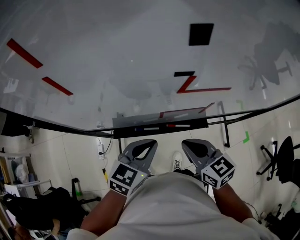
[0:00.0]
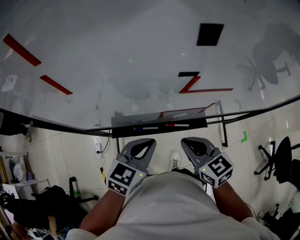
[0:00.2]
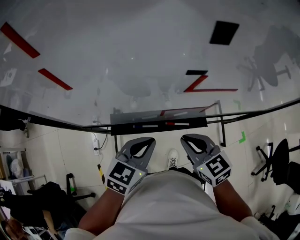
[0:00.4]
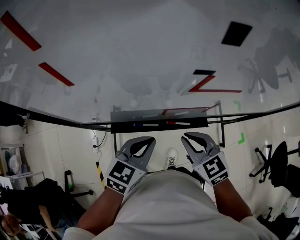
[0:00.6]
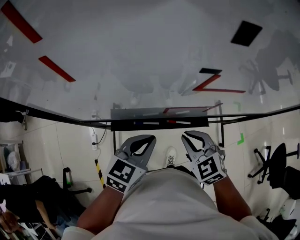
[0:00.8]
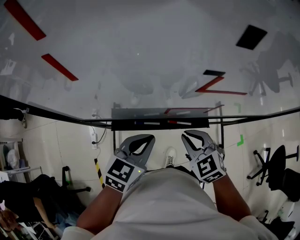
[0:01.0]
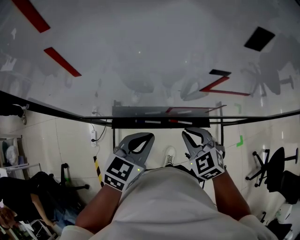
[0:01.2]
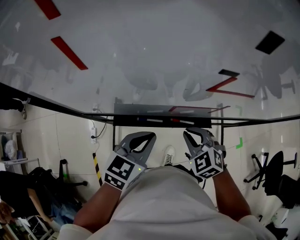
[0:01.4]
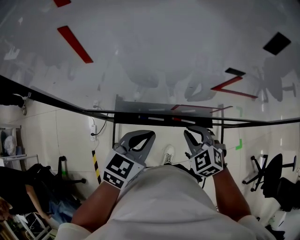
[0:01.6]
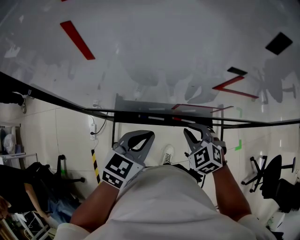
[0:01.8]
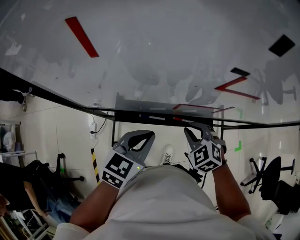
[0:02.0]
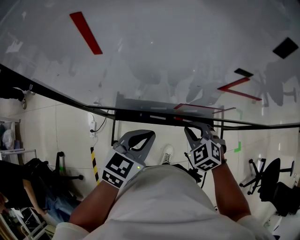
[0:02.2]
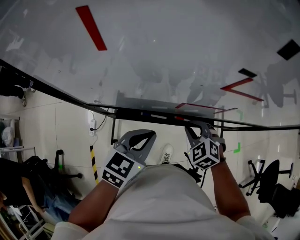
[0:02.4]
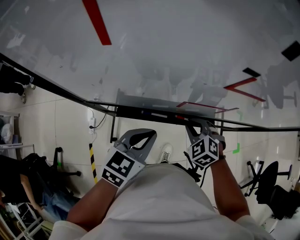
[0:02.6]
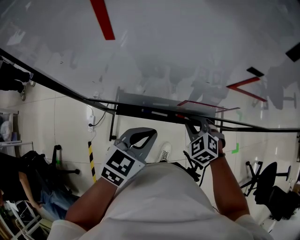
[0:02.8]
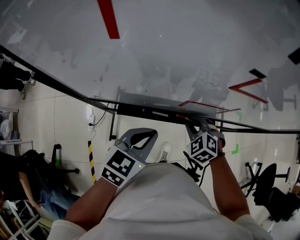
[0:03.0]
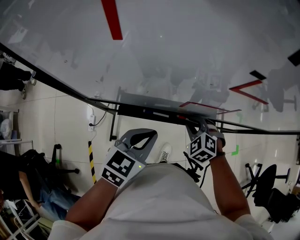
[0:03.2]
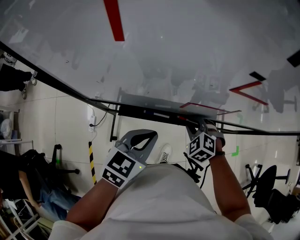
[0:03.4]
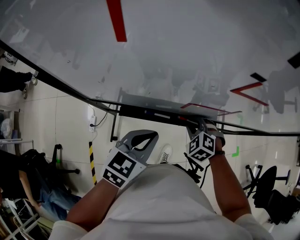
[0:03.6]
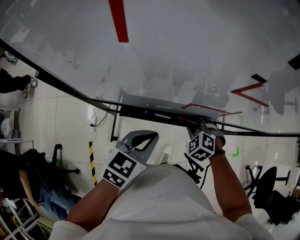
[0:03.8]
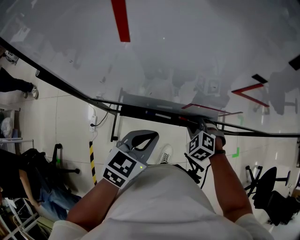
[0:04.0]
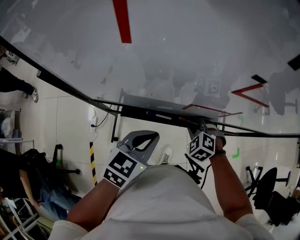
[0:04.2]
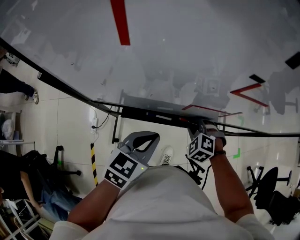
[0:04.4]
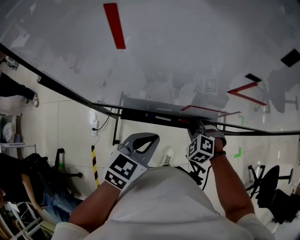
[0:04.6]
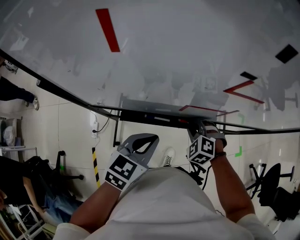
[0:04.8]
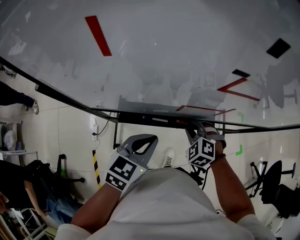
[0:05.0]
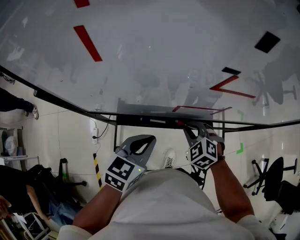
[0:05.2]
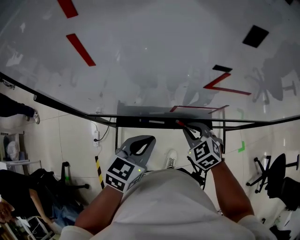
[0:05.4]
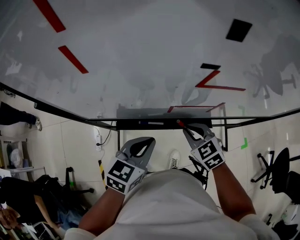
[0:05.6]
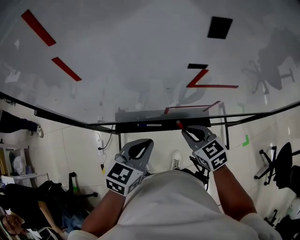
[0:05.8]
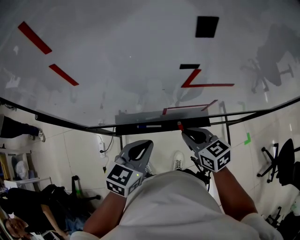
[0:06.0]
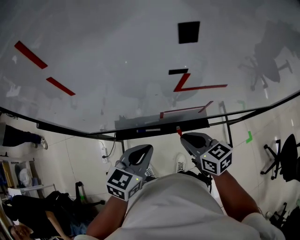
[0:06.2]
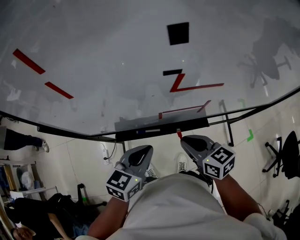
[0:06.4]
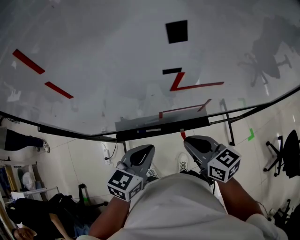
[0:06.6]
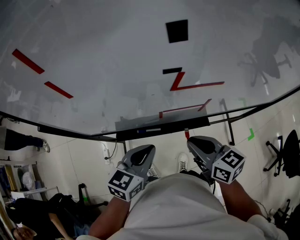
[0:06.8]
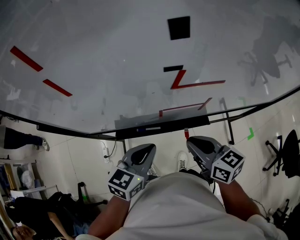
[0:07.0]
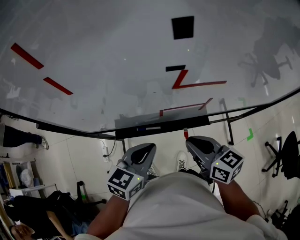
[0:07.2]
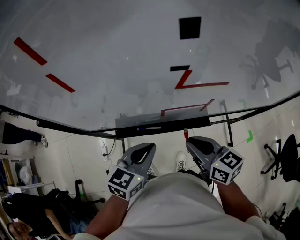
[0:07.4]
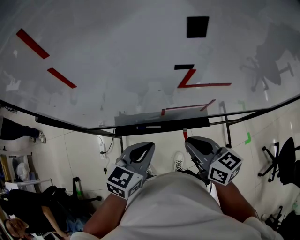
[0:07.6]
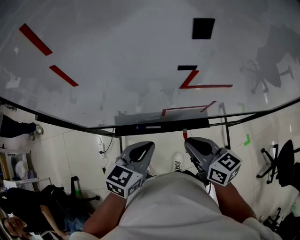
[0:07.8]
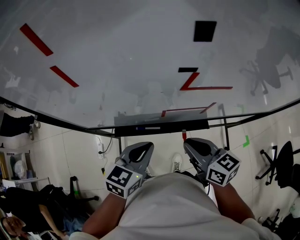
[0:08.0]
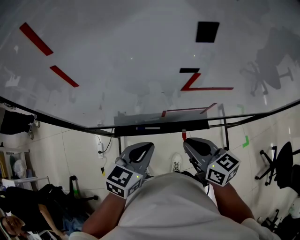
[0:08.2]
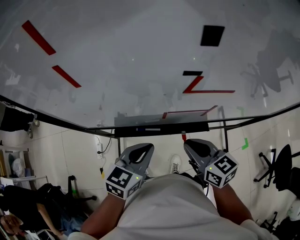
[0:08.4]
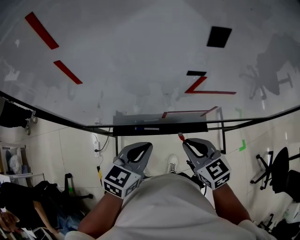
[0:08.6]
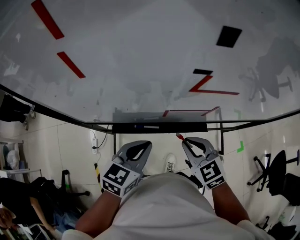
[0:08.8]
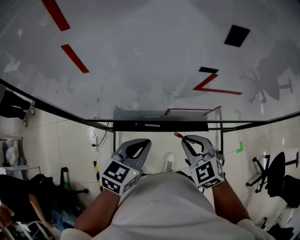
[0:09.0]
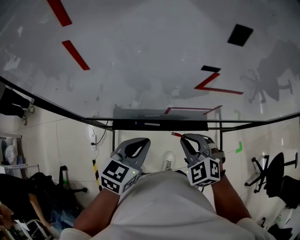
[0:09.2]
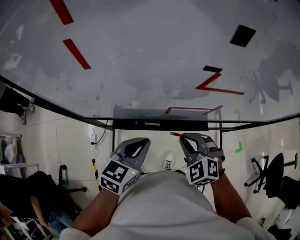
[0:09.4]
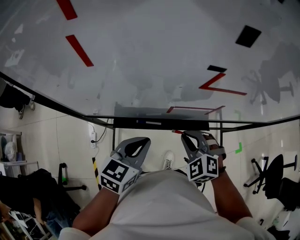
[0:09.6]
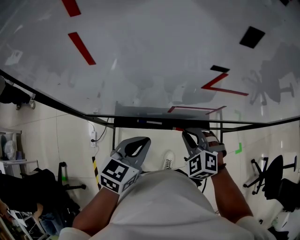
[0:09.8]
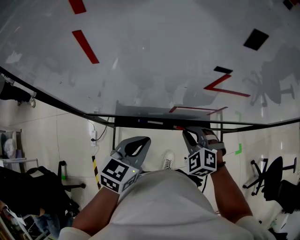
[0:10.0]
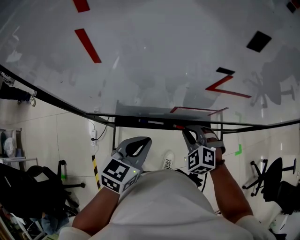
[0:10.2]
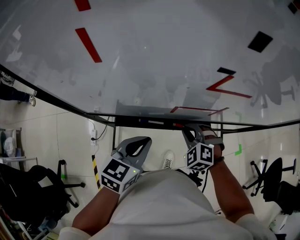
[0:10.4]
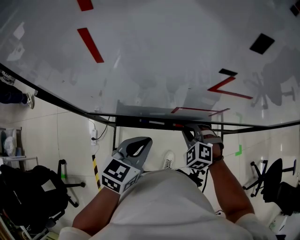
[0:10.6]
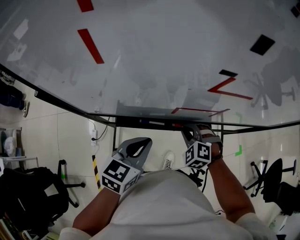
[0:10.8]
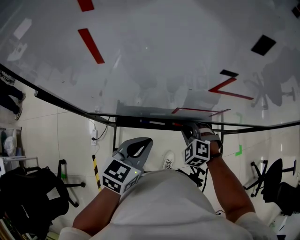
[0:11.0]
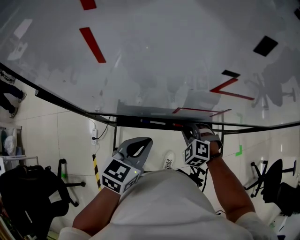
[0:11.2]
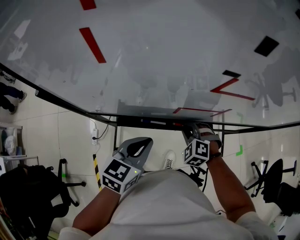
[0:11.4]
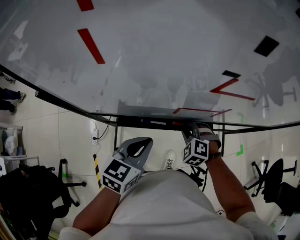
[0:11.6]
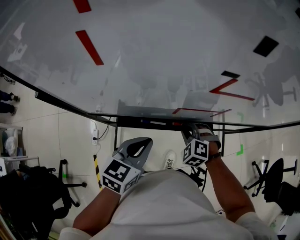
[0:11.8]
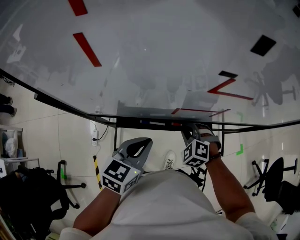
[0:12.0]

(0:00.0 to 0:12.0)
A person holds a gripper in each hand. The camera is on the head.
0:00.0 - 0:01.6: The right gripper is displaced downward by roughly 10 cm, and twists some 40 degrees counterclockwise, seen from behind.
0:01.6 - 0:03.0: The right gripper is displaced downward by roughly 5 cm.
0:03.0 - 0:04.4: The grippers move only a little.
0:04.4 - 0:06.0: The right gripper goes roughly 10 cm upward, and rolls clockwise, seen from behind, by some 60 degrees.
0:06.0 - 0:07.6: The right gripper goes approximately 5 cm upward.
0:07.6 - 0:09.0: The right gripper rotates around the line of its fingers by approximately 50 degrees, counterclockwise from behind.
0:09.0 - 0:10.4: The right gripper moves downward, about 5 cm, and swivels some 30 degrees.
0:10.4 - 0:12.0: The grippers move only a little.

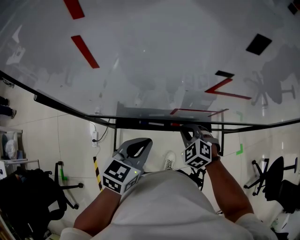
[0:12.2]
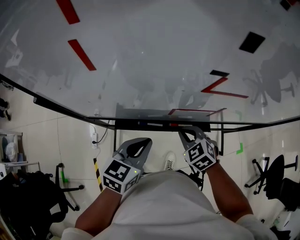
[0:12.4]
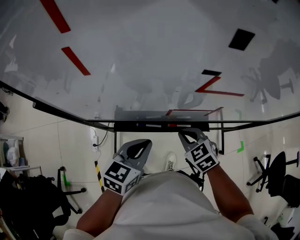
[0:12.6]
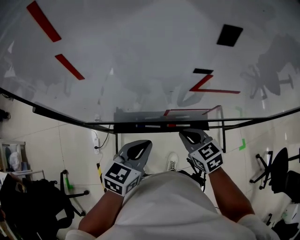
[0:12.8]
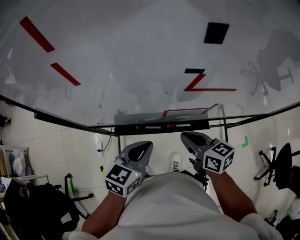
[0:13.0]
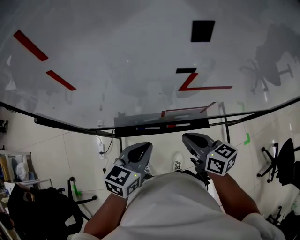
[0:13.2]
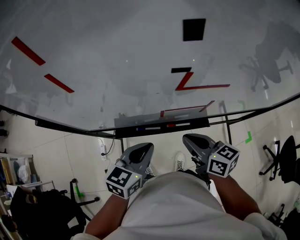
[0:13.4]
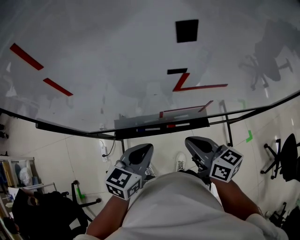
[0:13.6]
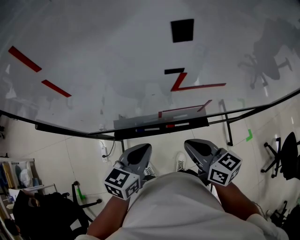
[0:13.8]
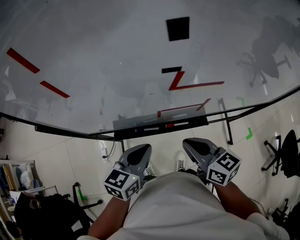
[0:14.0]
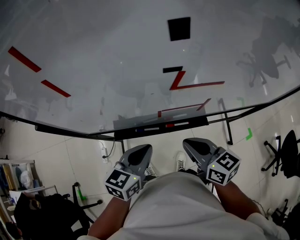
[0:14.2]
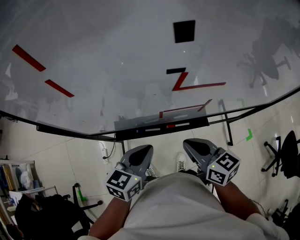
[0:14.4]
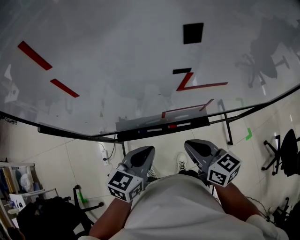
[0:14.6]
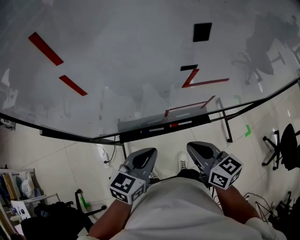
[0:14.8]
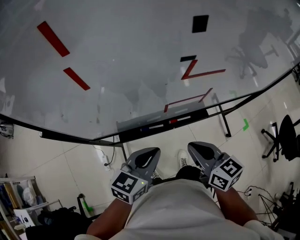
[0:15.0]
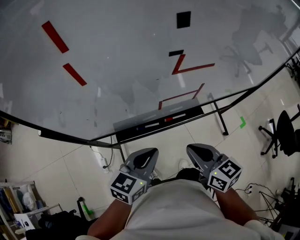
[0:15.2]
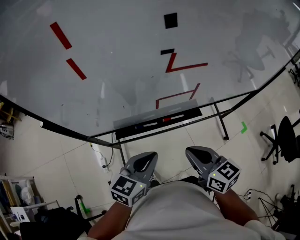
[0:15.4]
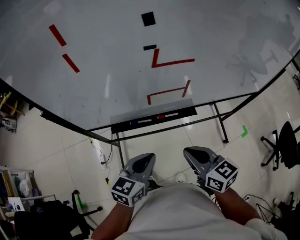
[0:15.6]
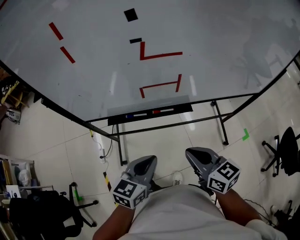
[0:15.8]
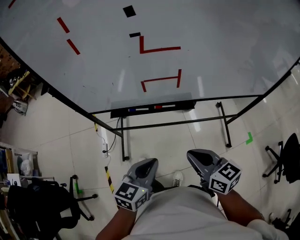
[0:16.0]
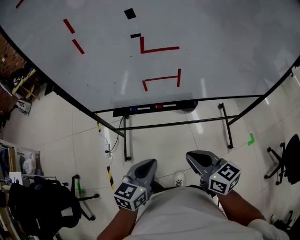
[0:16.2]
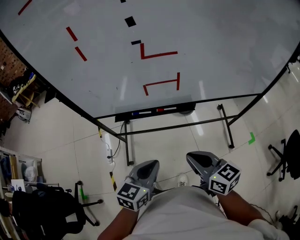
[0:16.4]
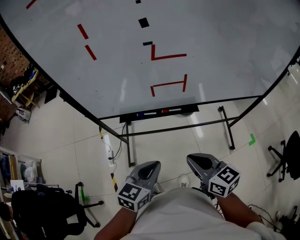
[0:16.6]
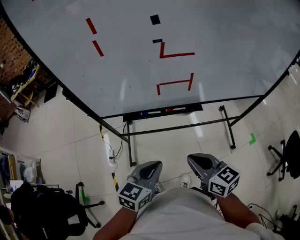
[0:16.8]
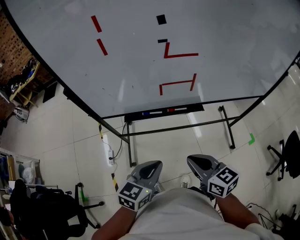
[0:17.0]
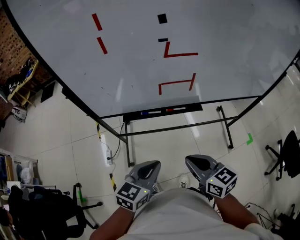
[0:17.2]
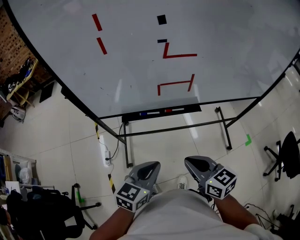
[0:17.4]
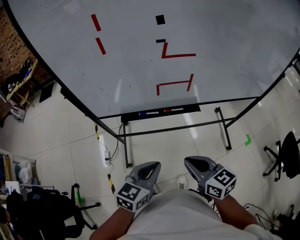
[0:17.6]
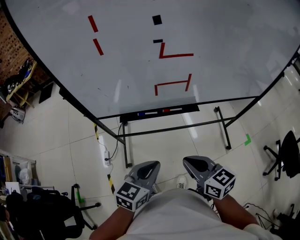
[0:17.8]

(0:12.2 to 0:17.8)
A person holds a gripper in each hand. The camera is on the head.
0:12.2 - 0:13.6: The right gripper heads upward, covering about 15 cm, and rotates around the line of its fingers by some 60 degrees, clockwise from behind.
0:13.6 - 0:15.0: The right gripper moves backward, about 5 cm.
0:15.0 - 0:16.4: The two grippers go about 20 cm backward and to the right.
0:16.4 - 0:17.8: The right gripper travels to the left by roughly 5 cm.

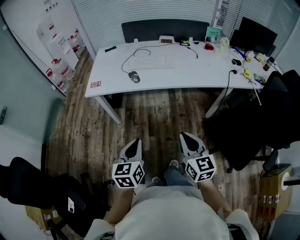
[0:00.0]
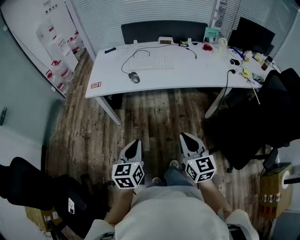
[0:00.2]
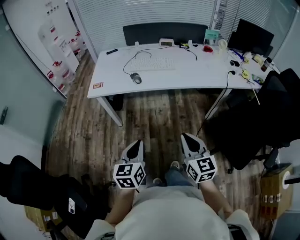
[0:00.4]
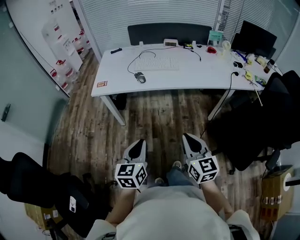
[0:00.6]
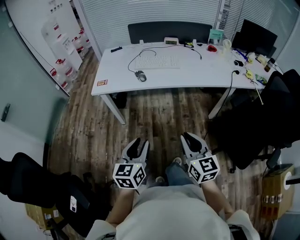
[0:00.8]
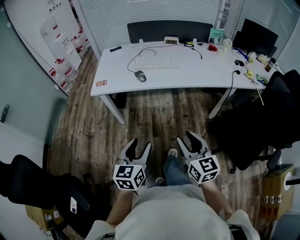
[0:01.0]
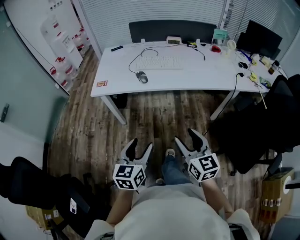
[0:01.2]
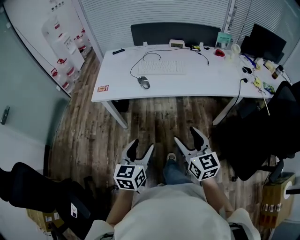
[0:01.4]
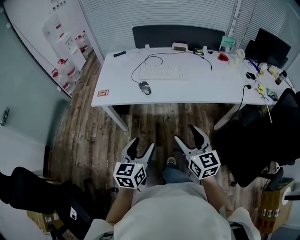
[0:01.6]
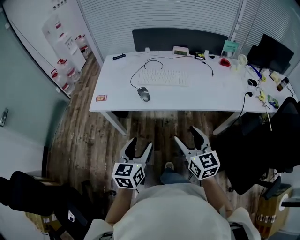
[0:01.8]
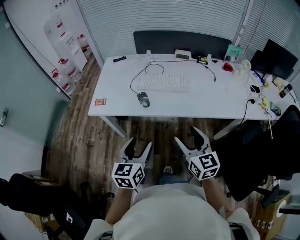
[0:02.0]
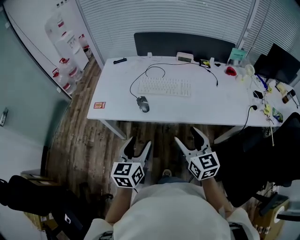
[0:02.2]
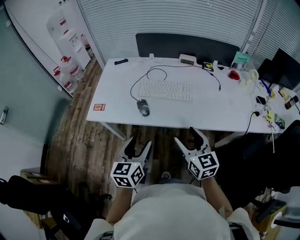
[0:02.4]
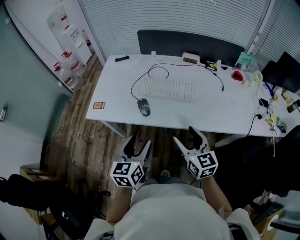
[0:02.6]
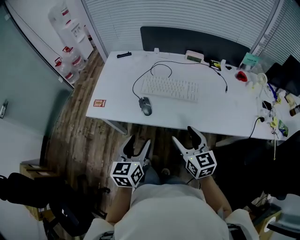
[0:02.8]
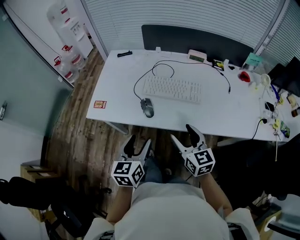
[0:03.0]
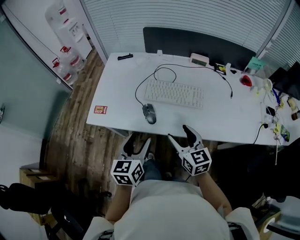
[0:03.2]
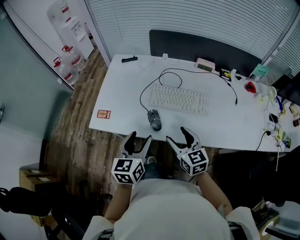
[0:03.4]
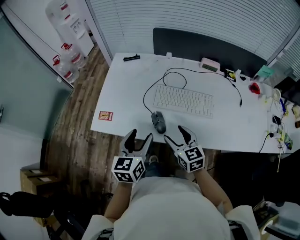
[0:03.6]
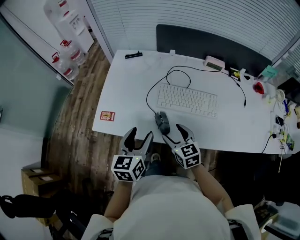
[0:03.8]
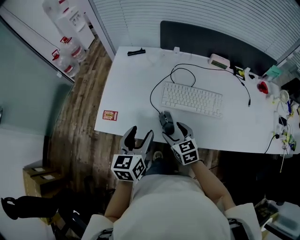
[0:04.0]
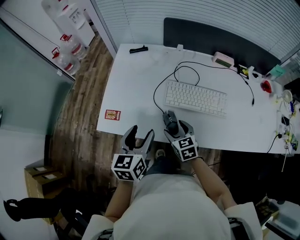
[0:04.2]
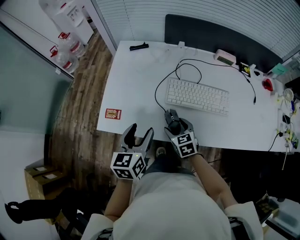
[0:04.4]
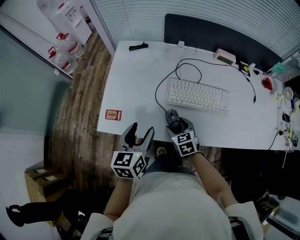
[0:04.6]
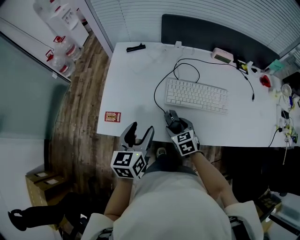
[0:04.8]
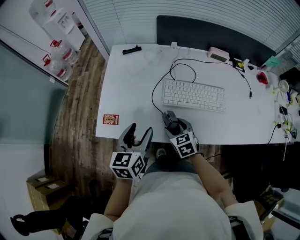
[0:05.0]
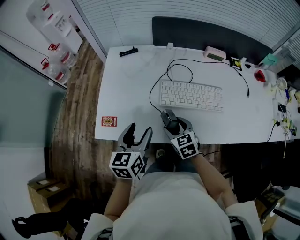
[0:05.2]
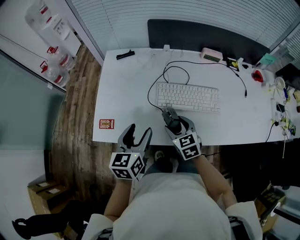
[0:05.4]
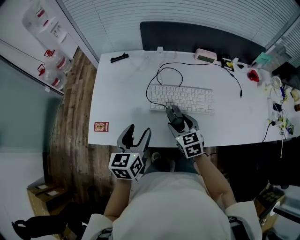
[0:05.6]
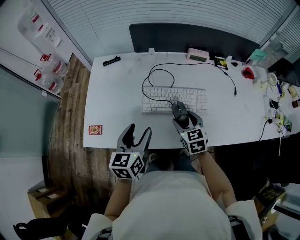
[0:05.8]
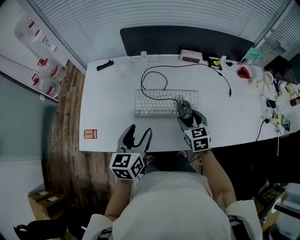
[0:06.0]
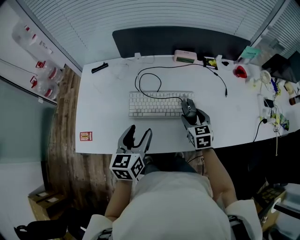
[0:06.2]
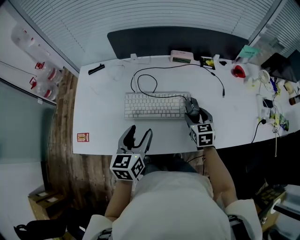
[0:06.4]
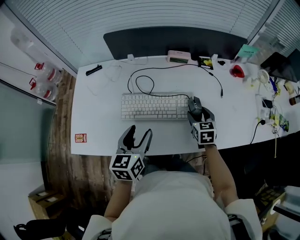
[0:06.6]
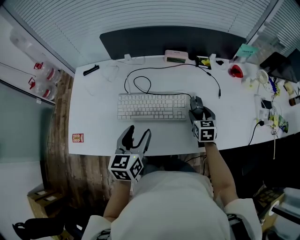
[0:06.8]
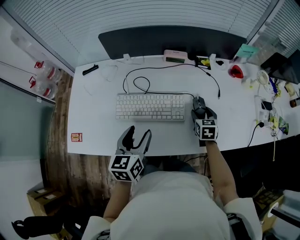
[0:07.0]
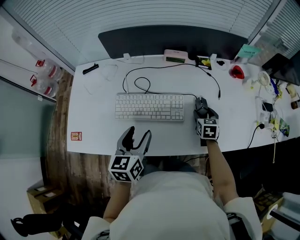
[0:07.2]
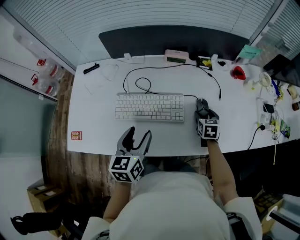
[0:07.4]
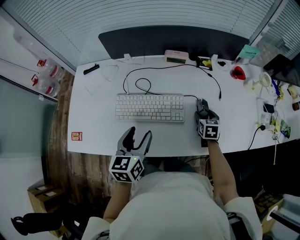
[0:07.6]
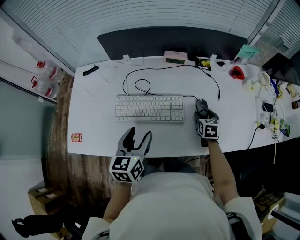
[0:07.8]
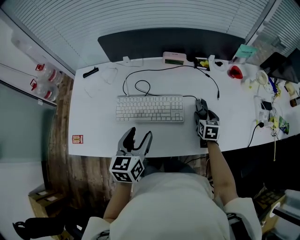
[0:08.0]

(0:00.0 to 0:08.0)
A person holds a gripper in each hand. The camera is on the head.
0:00.0 - 0:01.6: The grippers both shift forward by about 10 cm. The right gripper opens. Meanwhile the left gripper opens up.
0:01.6 - 0:03.2: Both grippers travel together forward, approximately 25 cm.
0:03.2 - 0:04.8: The left gripper moves forward and to the left, about 15 cm; the right gripper shifts some 25 cm downward, forward and to the left, and rotates some 30 degrees.
0:04.8 - 0:06.4: The left gripper shifts about 20 cm to the right. The right gripper travels to the right by some 30 cm, and swivels roughly 20 degrees.
0:06.4 - 0:08.0: The right gripper shifts about 15 cm to the right and downward. The left gripper moves to the right, approximately 5 cm.
